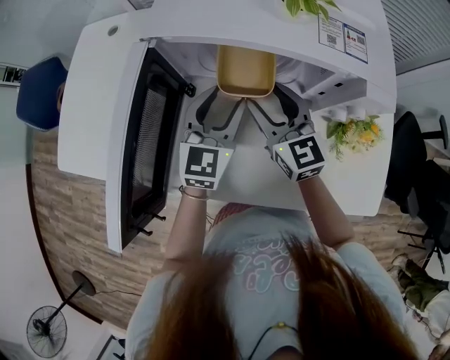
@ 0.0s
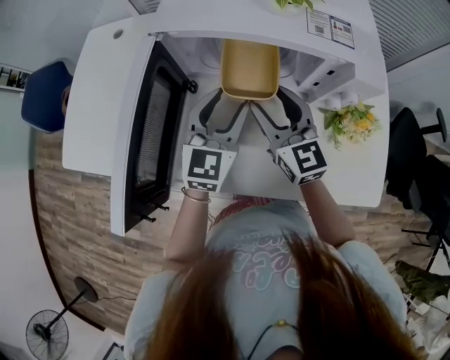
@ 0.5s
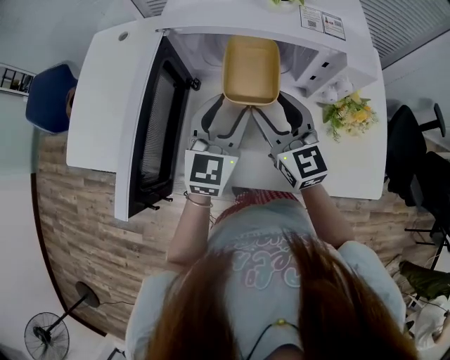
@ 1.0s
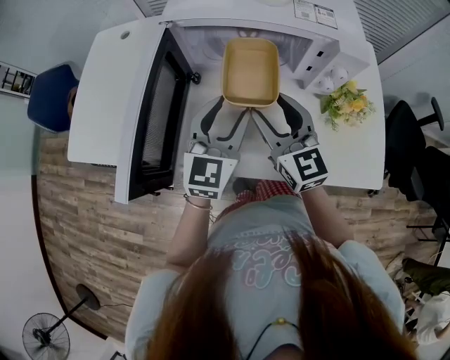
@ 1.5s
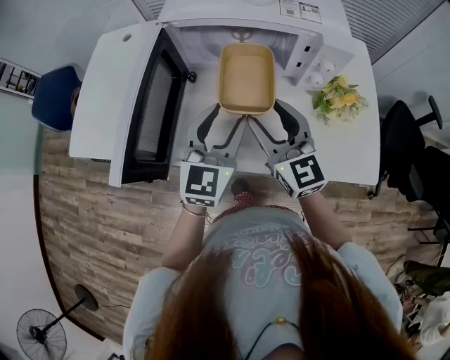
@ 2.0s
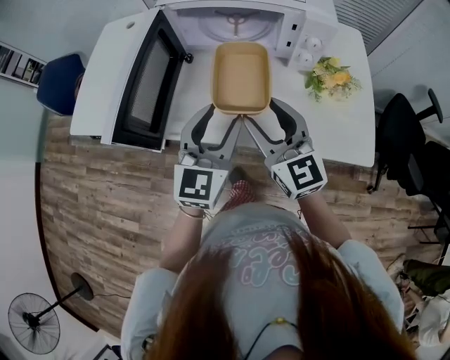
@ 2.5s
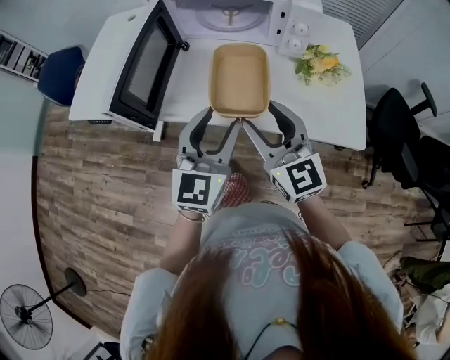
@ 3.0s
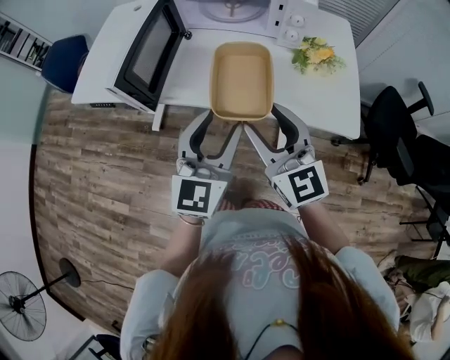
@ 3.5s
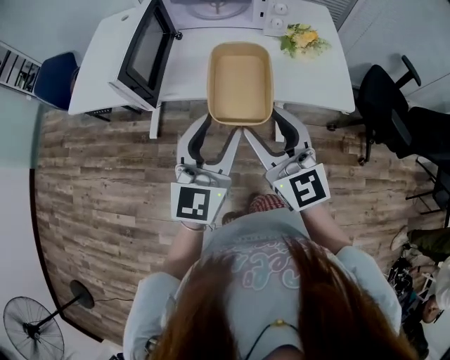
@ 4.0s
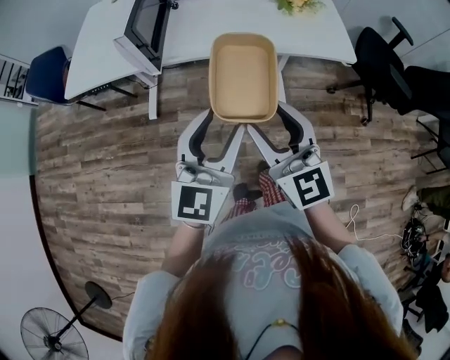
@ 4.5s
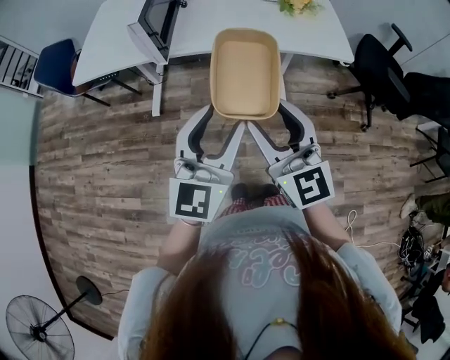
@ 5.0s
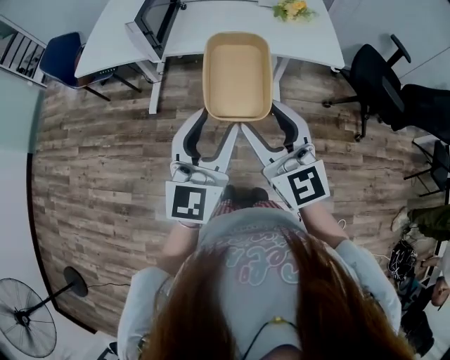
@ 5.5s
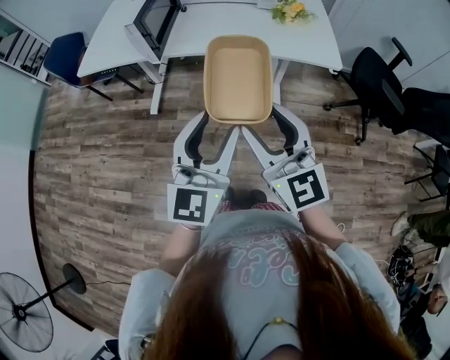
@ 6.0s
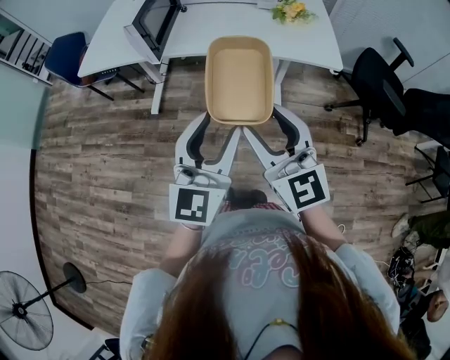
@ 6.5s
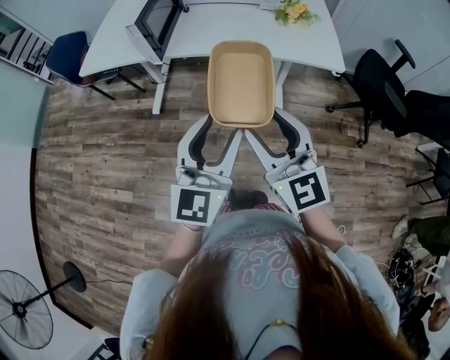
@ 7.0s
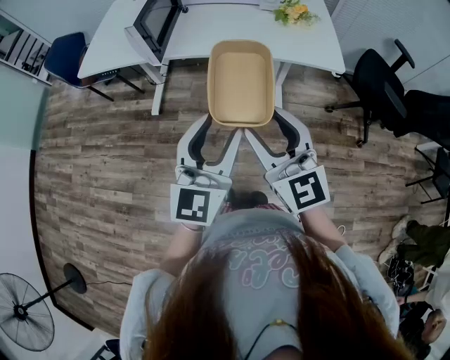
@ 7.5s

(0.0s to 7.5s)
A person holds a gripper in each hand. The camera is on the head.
0.0s - 2.0s: Both grippers move backward and upward, some 15 cm.
2.0s - 4.0s: The two grippers go roughly 30 cm backward.
4.0s - 5.5s: Both grippers move backward, about 20 cm.
5.5s - 7.5s: There are only small adjustments of the grippers.

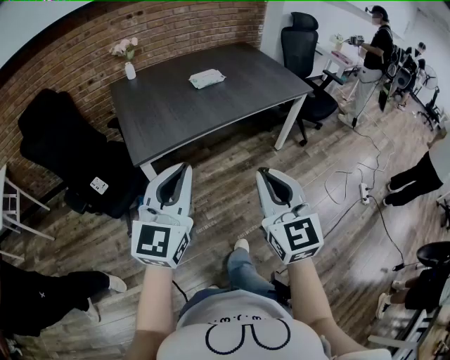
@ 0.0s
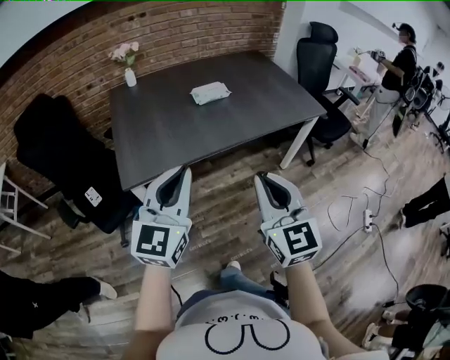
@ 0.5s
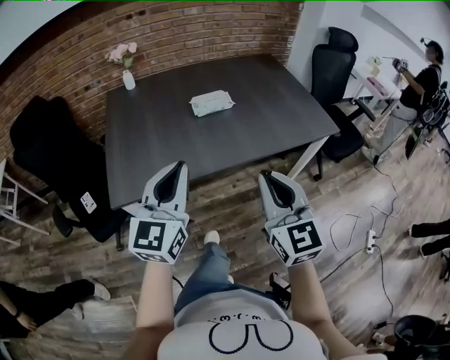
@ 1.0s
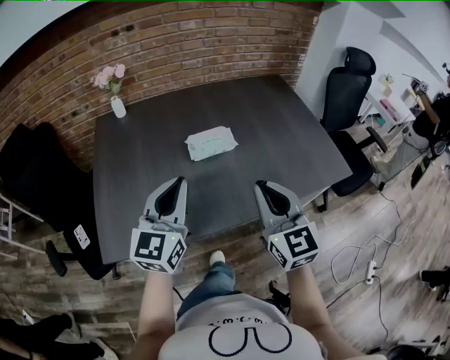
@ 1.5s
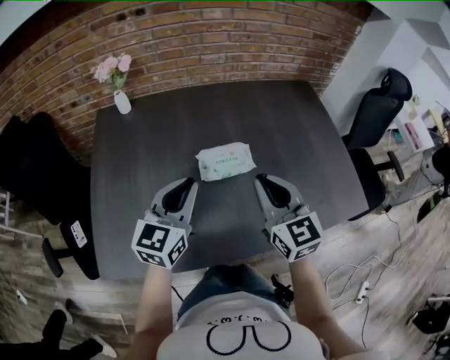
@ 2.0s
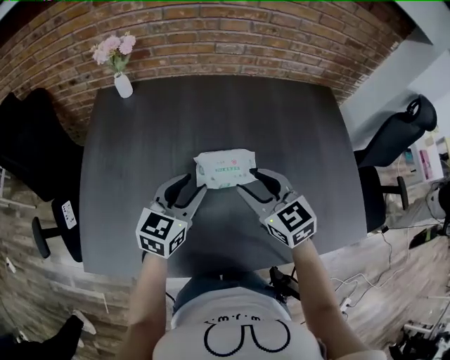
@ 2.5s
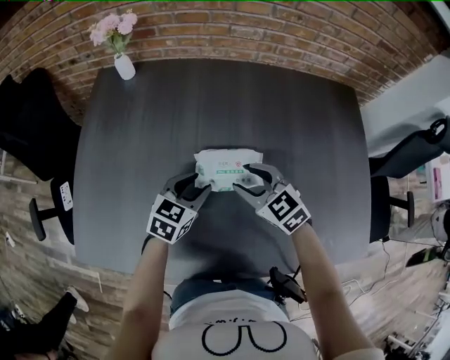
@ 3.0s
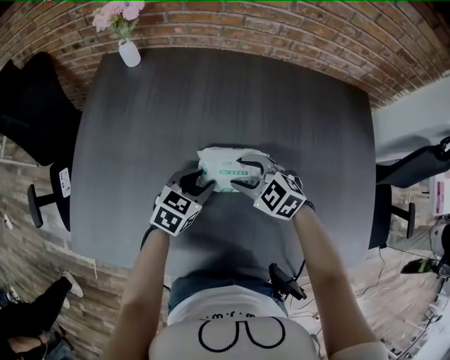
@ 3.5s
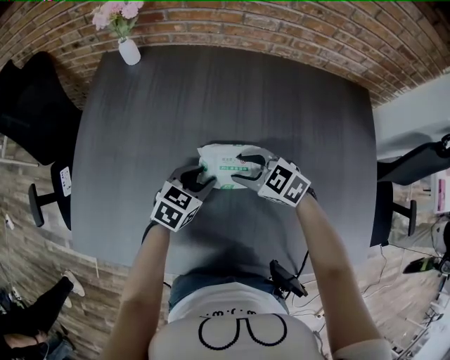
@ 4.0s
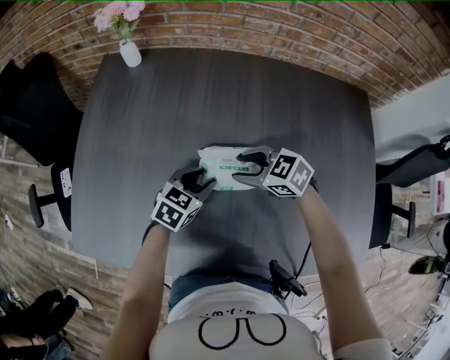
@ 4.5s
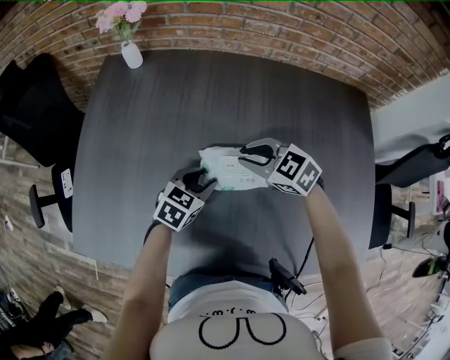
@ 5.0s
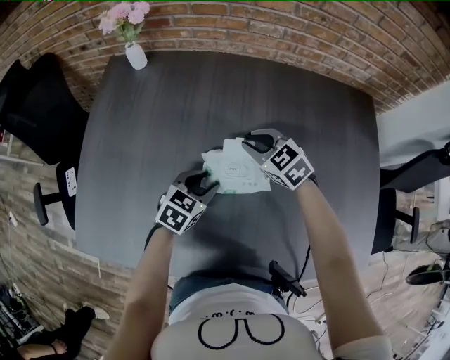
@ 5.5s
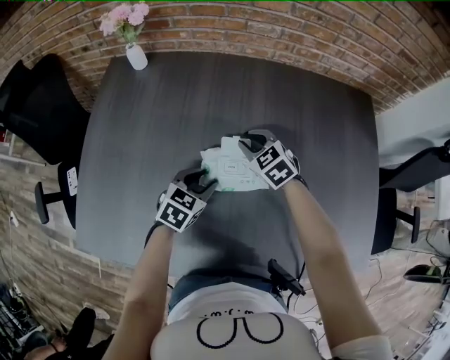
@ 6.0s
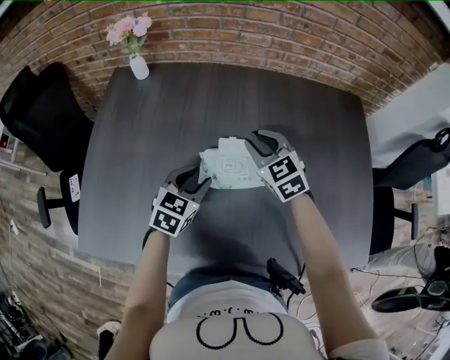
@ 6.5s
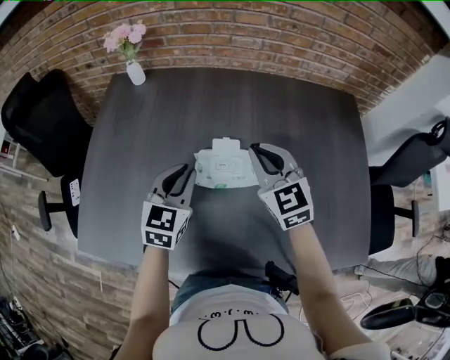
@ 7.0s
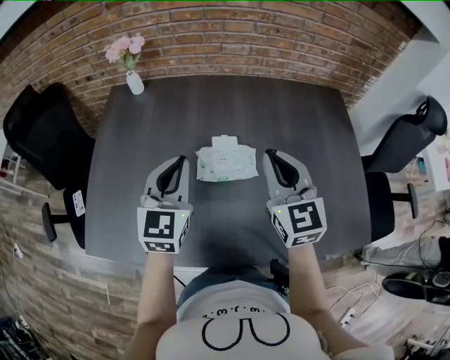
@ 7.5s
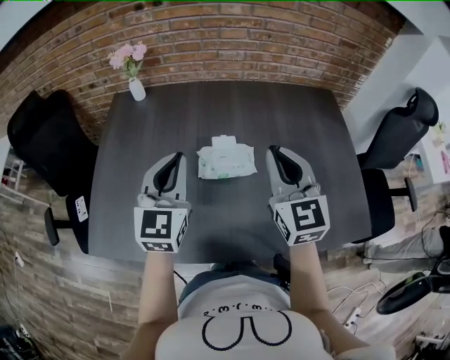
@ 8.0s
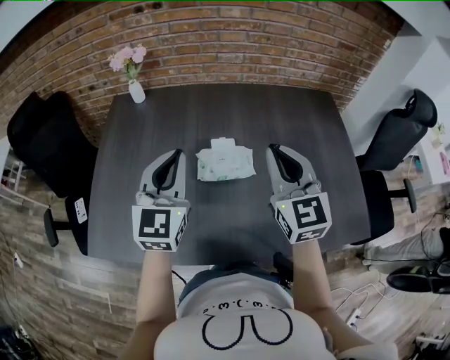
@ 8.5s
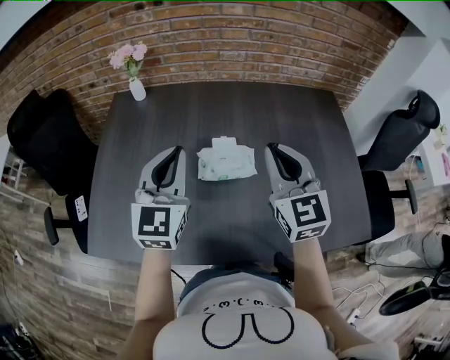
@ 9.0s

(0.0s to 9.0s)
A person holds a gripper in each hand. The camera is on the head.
0.0s - 2.0s: The pair of grippers is taken forward, some 70 cm. The left gripper changes its angle by approximately 20 degrees; the right gripper changes its angle by approximately 20 degrees.
2.0s - 4.5s: The grippers both shift downward by about 25 cm. The right gripper angles its fingers downward, by roughly 30 degrees, and opens, while the left gripper points its fingers roughly 30 degrees further downward, and opens up.
4.5s - 7.0s: The grippers both shift upward by about 15 cm. The right gripper rotates roughly 50 degrees, and closes its fingers. The left gripper swivels roughly 30 degrees, and closes its fingers.
7.0s - 9.0s: The right gripper goes some 15 cm upward and backward, while the left gripper moves upward, approximately 15 cm, and rotates approximately 20 degrees.

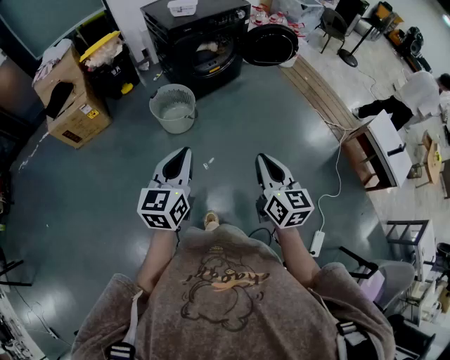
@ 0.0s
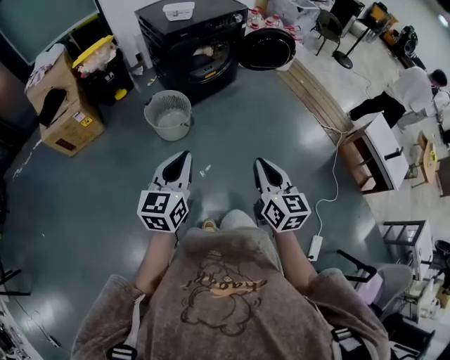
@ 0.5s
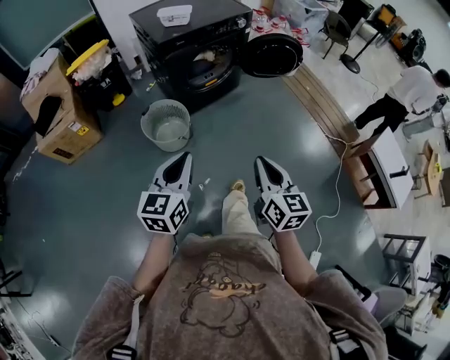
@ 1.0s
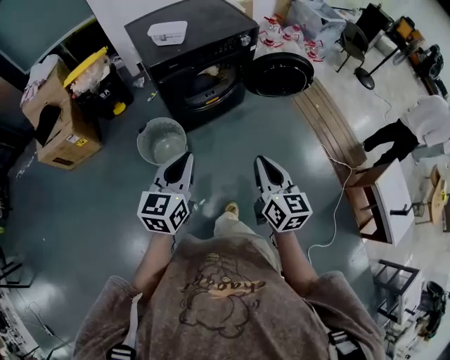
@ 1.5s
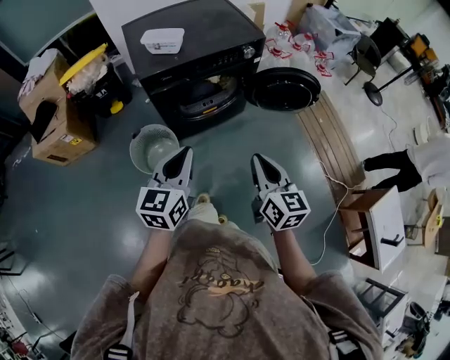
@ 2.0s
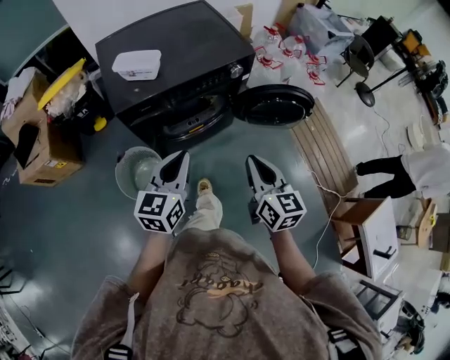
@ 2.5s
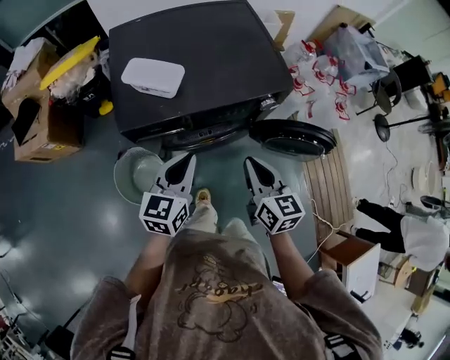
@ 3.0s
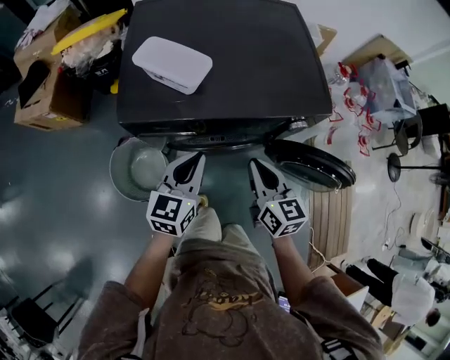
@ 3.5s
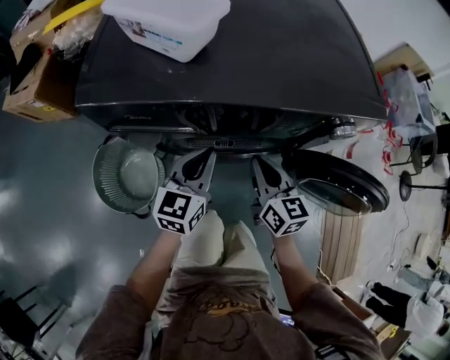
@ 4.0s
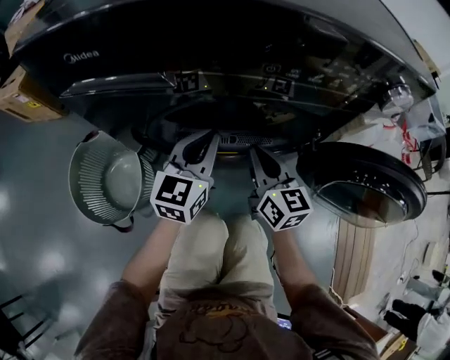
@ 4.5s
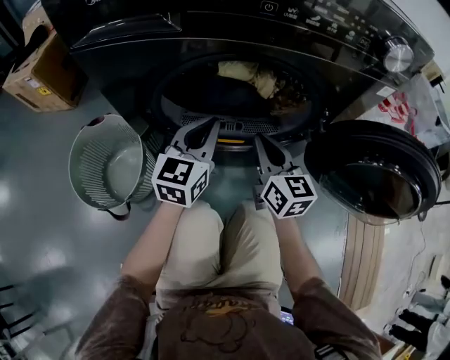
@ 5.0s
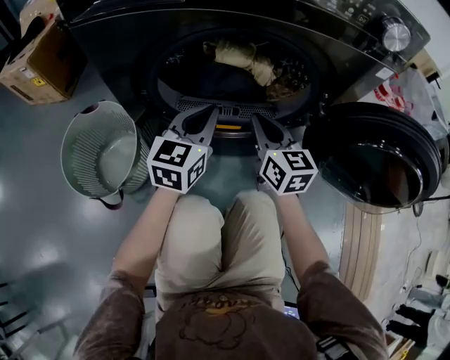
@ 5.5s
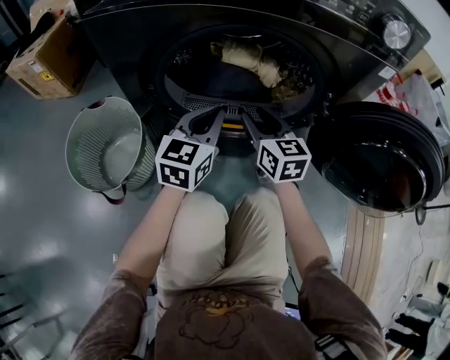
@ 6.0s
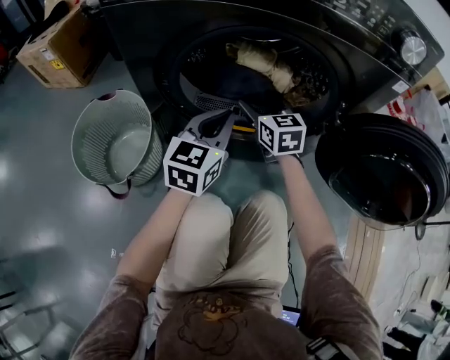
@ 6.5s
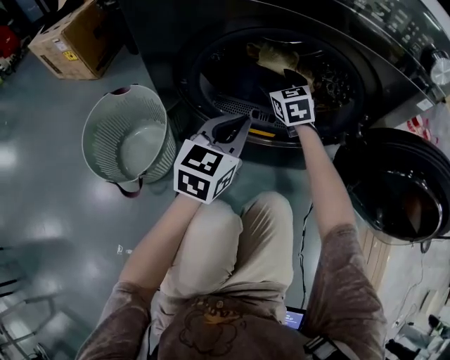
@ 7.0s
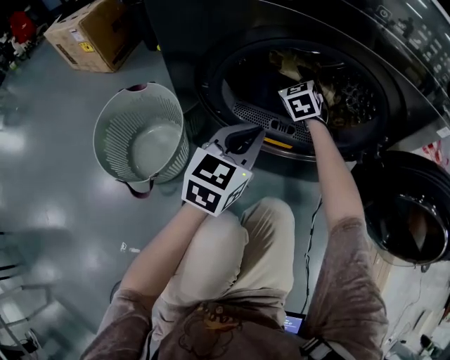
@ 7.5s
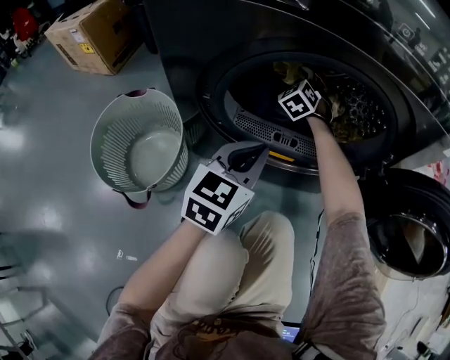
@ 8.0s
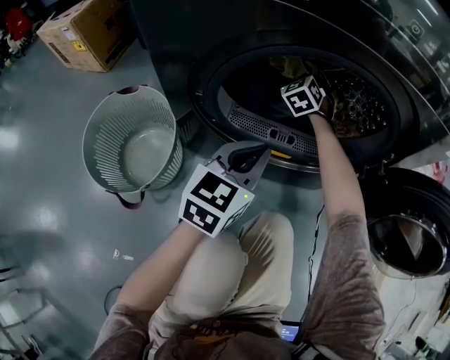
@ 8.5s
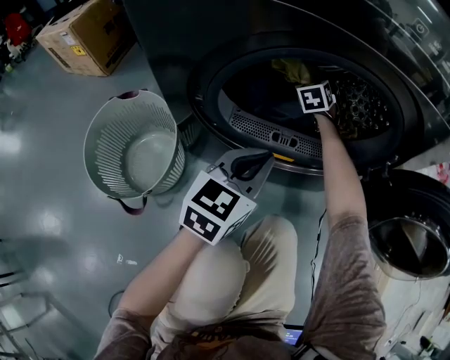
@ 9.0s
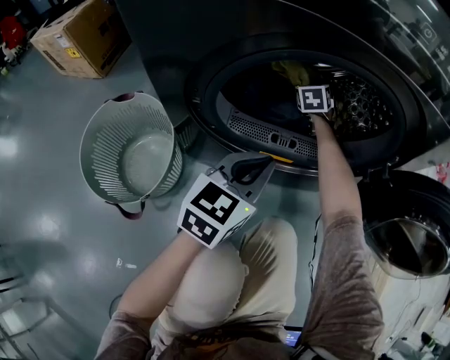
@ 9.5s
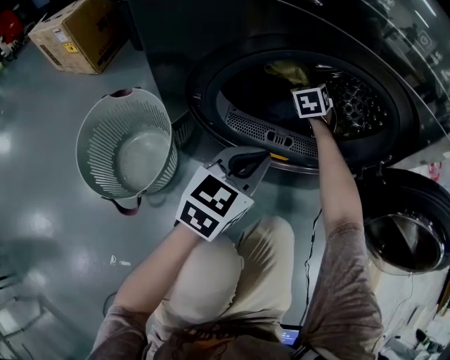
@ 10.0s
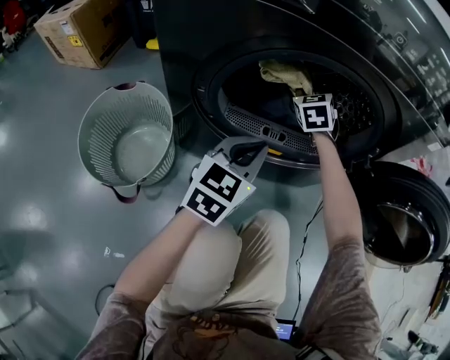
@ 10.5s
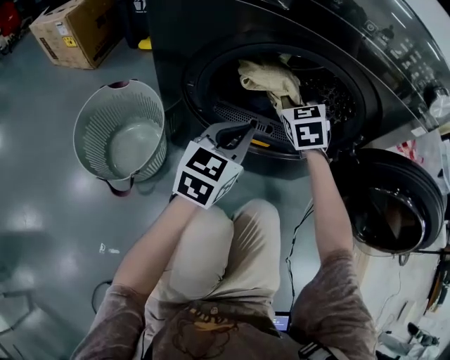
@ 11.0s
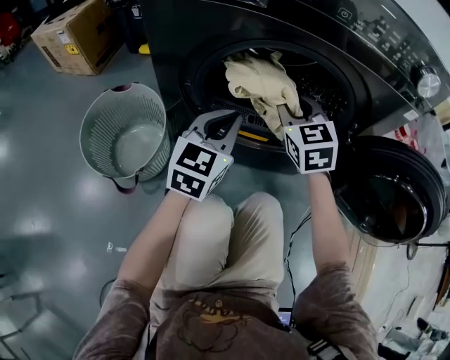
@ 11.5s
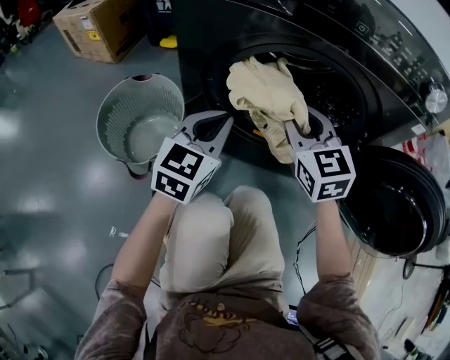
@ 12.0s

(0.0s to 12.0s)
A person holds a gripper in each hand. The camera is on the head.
0.0s - 2.0s: Both grippers are carried forward, approximately 50 cm.
2.0s - 4.0s: Both grippers move forward and downward, approximately 50 cm. The right gripper turns by roughly 30 degrees.
4.0s - 6.0s: Both grippers travel together downward, roughly 20 cm.
6.0s - 8.0s: The right gripper shifts about 25 cm forward, rolls counterclockwise, seen from behind, by approximately 50 degrees, and opens.
8.0s - 10.0s: The right gripper travels to the right by some 5 cm, rotates roughly 20 degrees, and closes its fingers.
10.0s - 12.0s: The left gripper moves roughly 10 cm, and swivels roughly 20 degrees, while the right gripper moves about 35 cm, and changes its angle by approximately 40 degrees.
